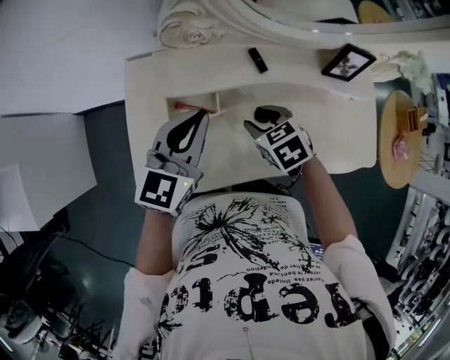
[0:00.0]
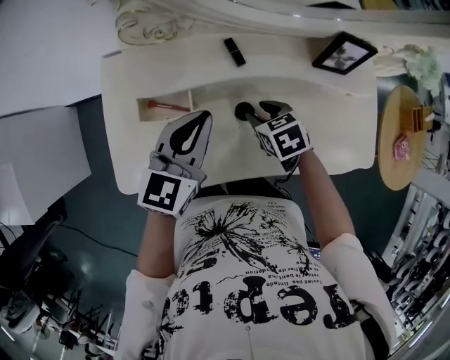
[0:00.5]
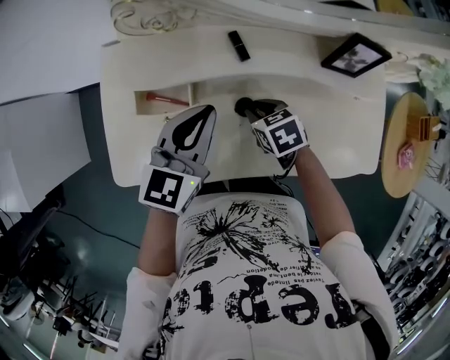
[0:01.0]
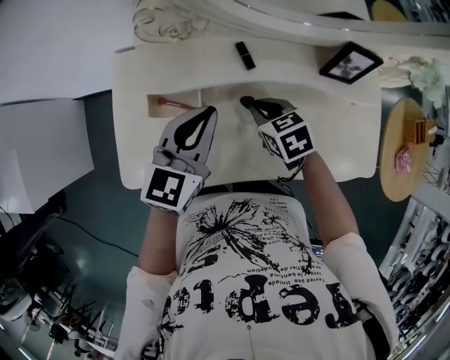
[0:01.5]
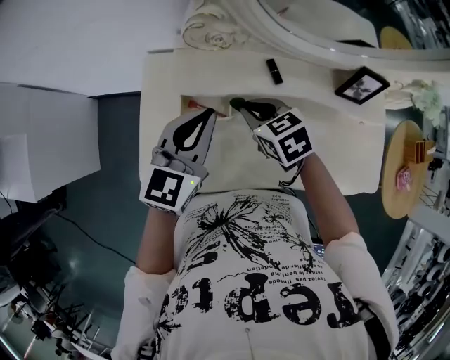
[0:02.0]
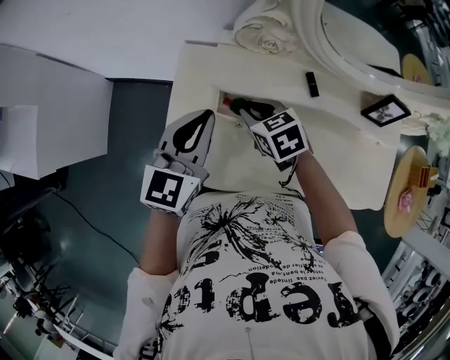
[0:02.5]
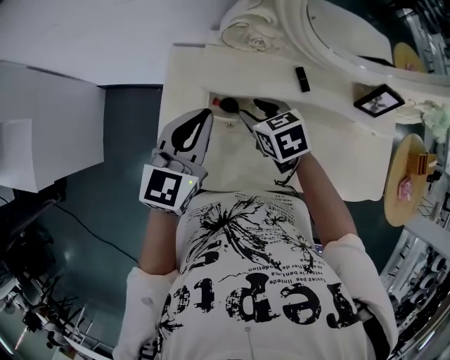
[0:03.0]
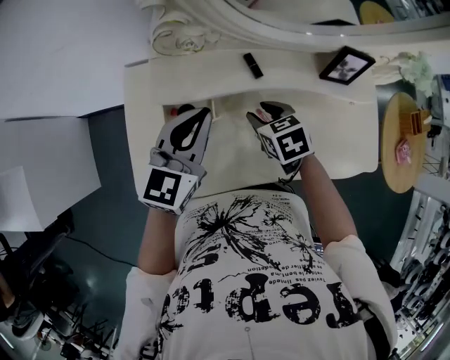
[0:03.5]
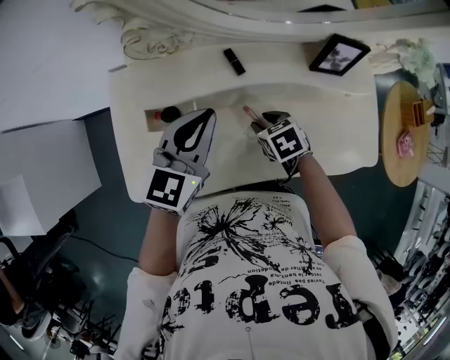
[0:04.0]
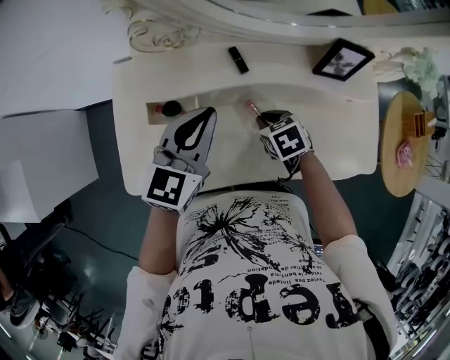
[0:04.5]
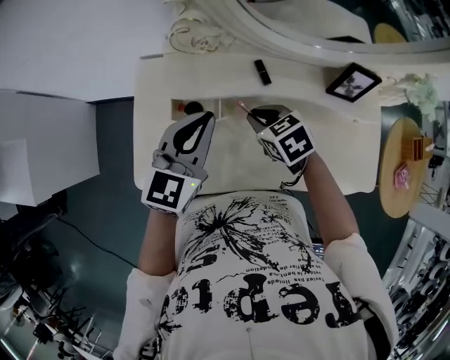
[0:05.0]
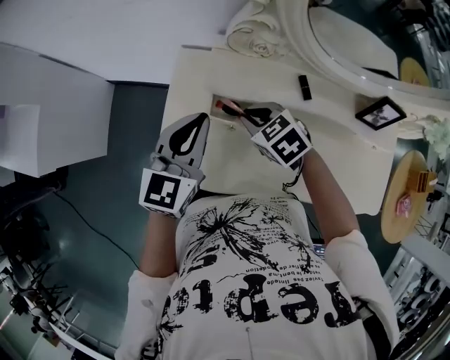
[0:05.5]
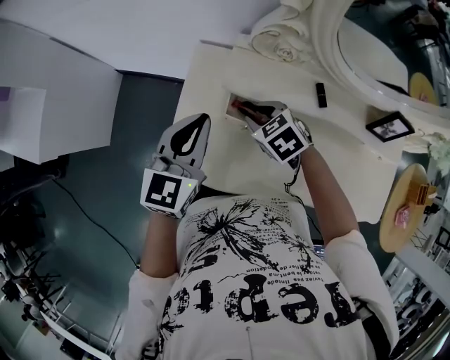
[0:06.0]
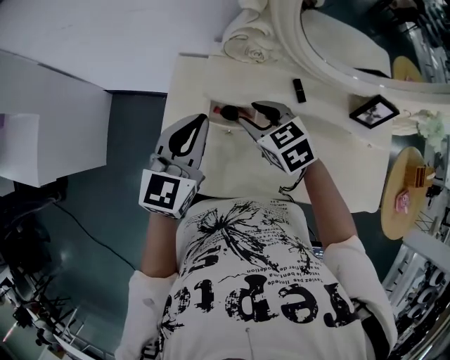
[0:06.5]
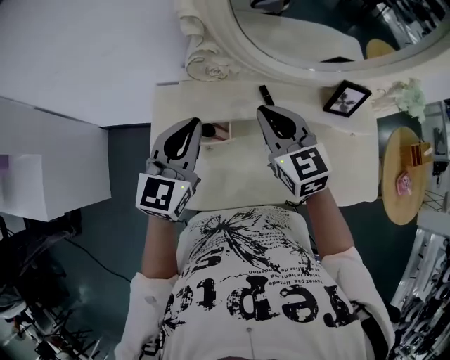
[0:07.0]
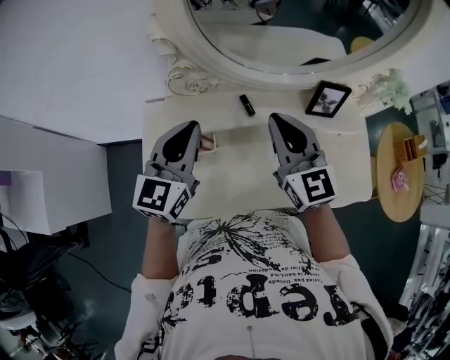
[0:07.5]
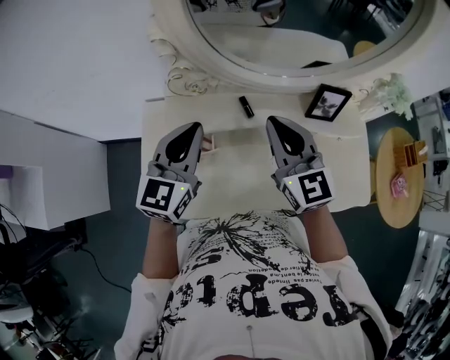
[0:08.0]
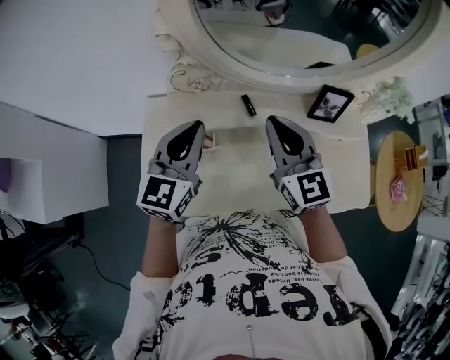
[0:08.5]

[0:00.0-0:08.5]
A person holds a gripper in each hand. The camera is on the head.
0:00.0 to 0:02.0: The left gripper reaches roughly 10 cm to the right, then returns, while the right gripper reaches roughly 10 cm to the right, then returns.
0:02.0 to 0:04.0: The right gripper is displaced to the right, downward and backward by about 20 cm, and swivels about 20 degrees, while the left gripper is displaced to the right by roughly 10 cm.
0:04.0 to 0:06.5: The left gripper travels to the left by roughly 20 cm, and turns by some 20 degrees; the right gripper heads to the left, upward and forward, covering about 25 cm, and rotates about 30 degrees.
0:06.5 to 0:08.5: The left gripper goes roughly 15 cm to the right and upward. Meanwhile the right gripper goes approximately 25 cm to the right and upward, and tips its fingers upward by roughly 40 degrees.

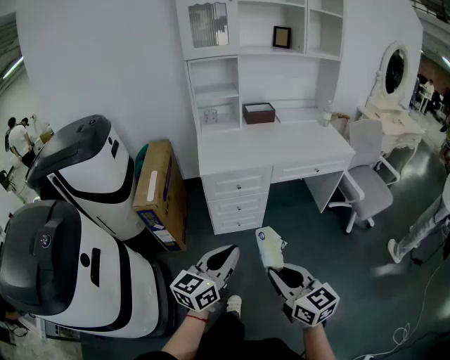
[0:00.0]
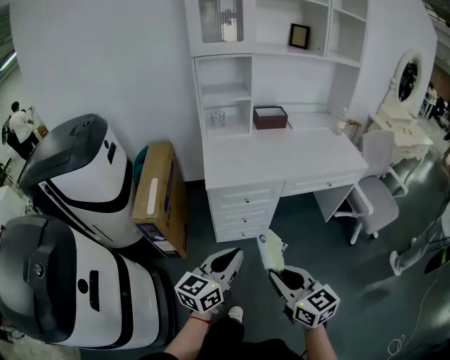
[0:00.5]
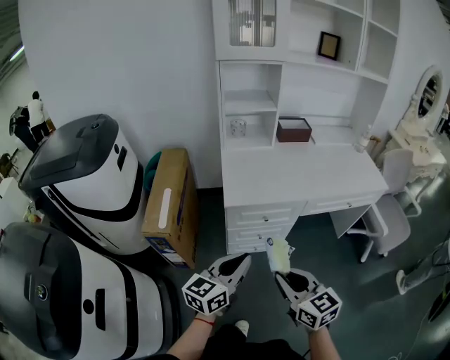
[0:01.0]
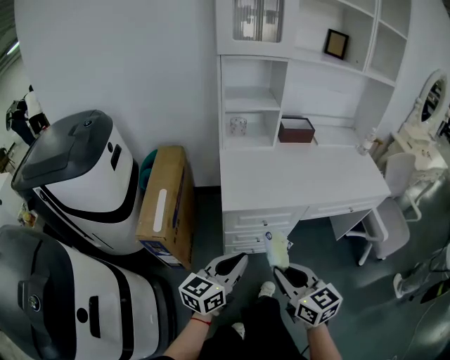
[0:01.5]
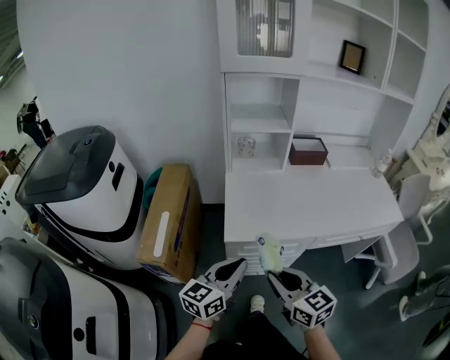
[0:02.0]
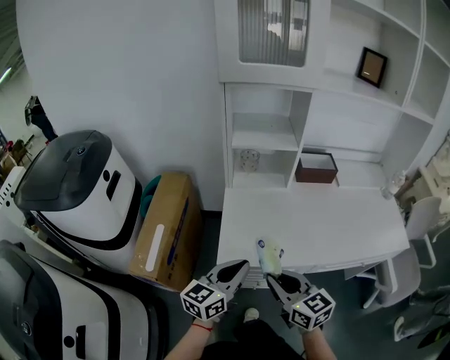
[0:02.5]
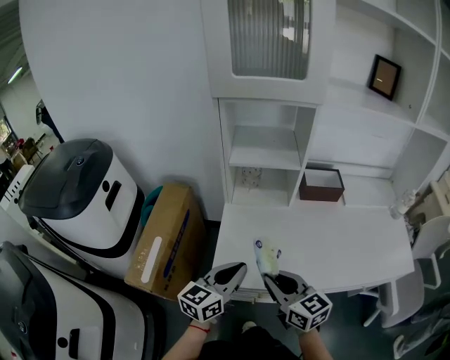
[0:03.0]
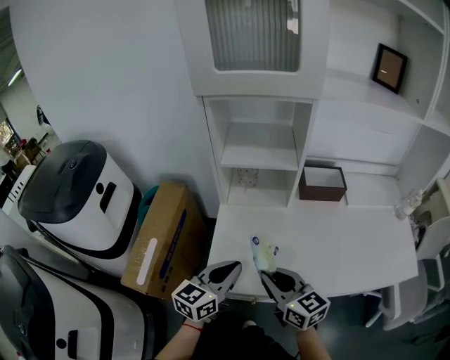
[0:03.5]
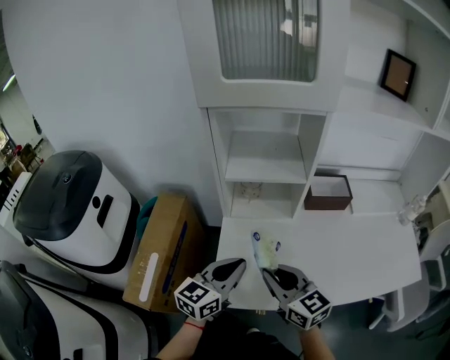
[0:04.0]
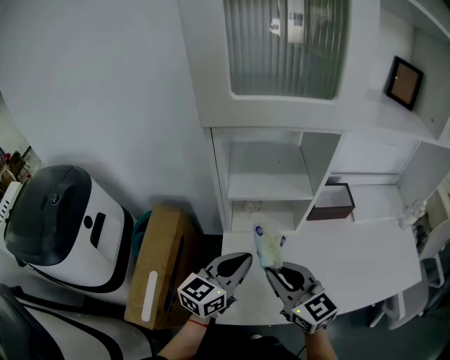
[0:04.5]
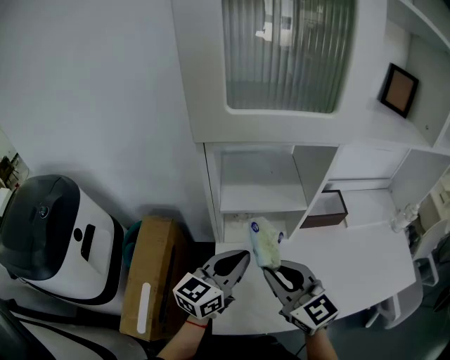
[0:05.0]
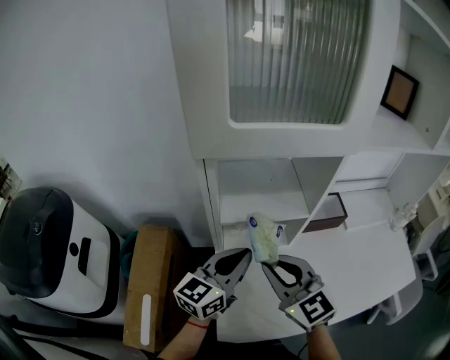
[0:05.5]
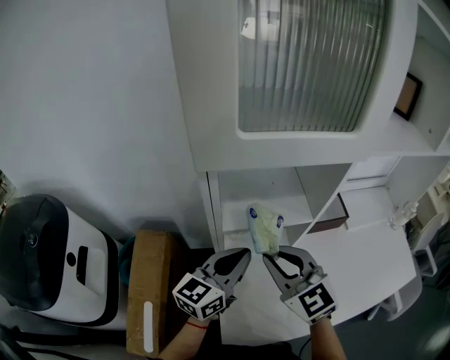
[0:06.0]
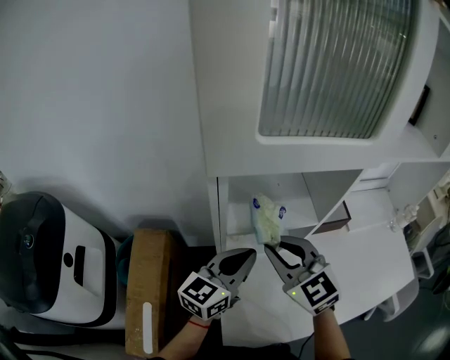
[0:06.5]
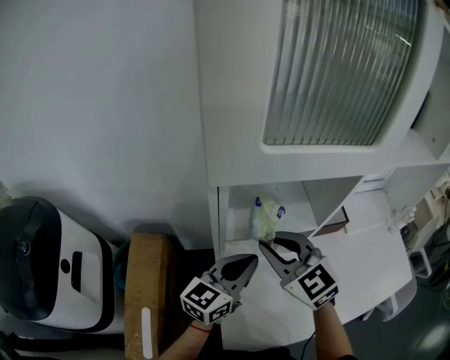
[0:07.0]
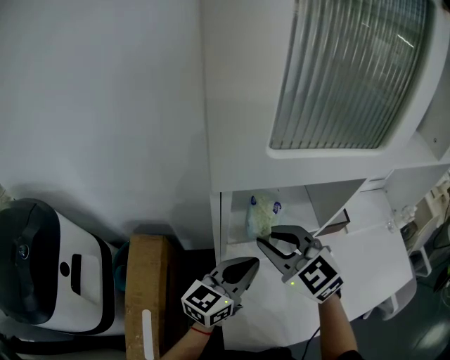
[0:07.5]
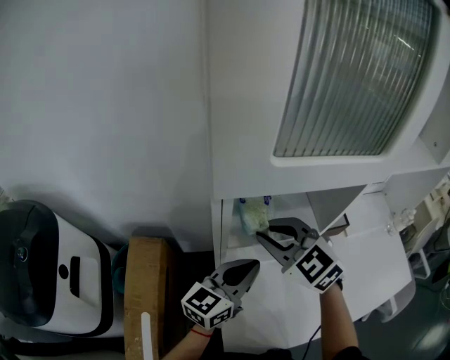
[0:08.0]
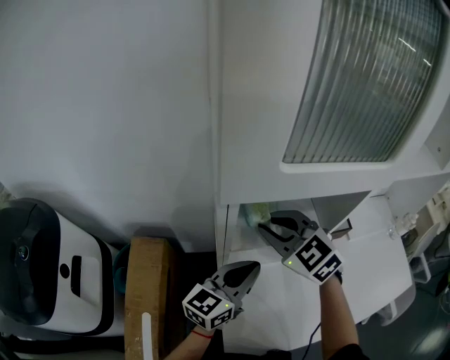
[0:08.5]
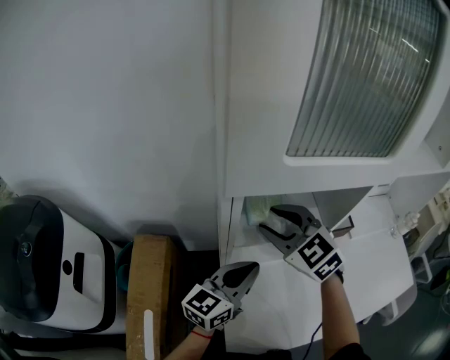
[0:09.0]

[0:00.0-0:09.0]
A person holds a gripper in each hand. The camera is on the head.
0:00.0 to 0:02.0: The two grippers go roughly 40 cm forward.
0:02.0 to 0:04.5: The grippers both shift forward by roughly 35 cm.
0:04.5 to 0:07.0: The right gripper is displaced forward by approximately 15 cm, and swivels some 20 degrees, while the left gripper goes roughly 10 cm forward.
0:07.0 to 0:09.0: The right gripper goes roughly 5 cm forward, and opens its fingers.

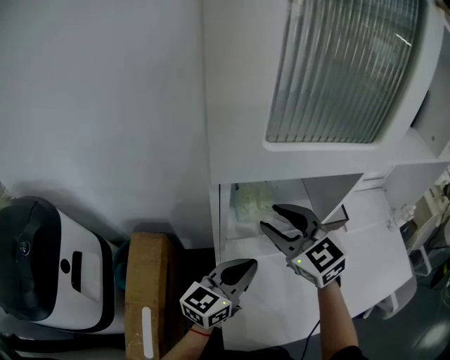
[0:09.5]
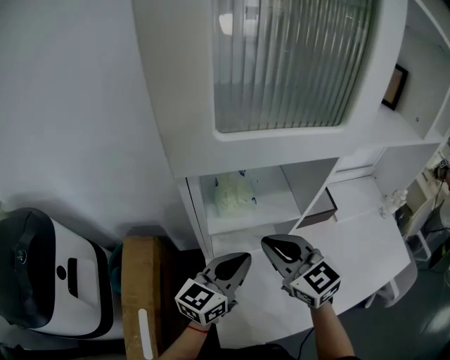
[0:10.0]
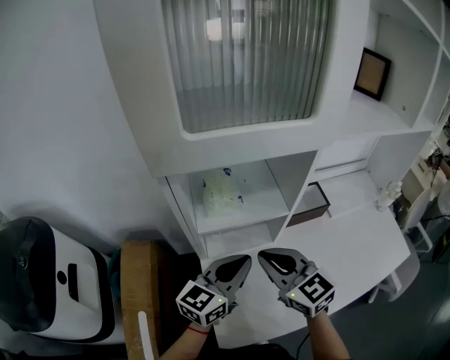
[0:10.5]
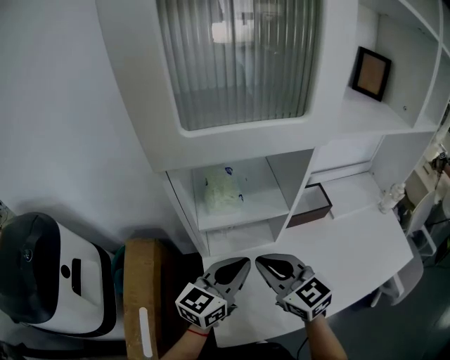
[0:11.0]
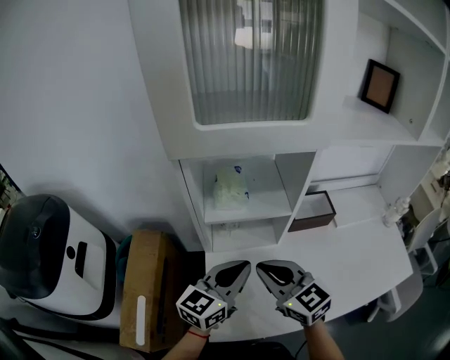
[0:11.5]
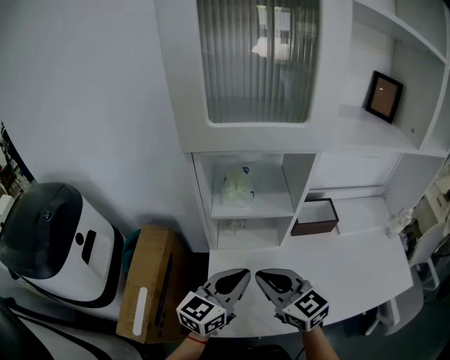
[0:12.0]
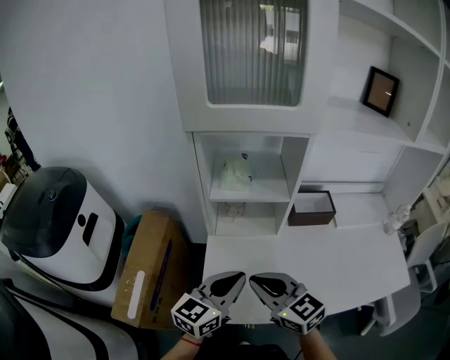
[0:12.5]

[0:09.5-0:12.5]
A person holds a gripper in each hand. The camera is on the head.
0:09.5 to 0:11.0: The right gripper is displaced backward, downward and to the right by about 15 cm, and closes; the left gripper moves to the right, roughly 5 cm.
0:11.0 to 0:12.5: The grippers both shift backward by some 15 cm.

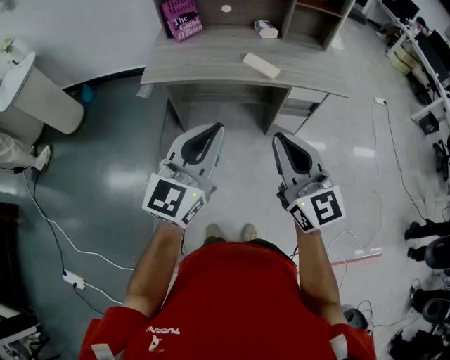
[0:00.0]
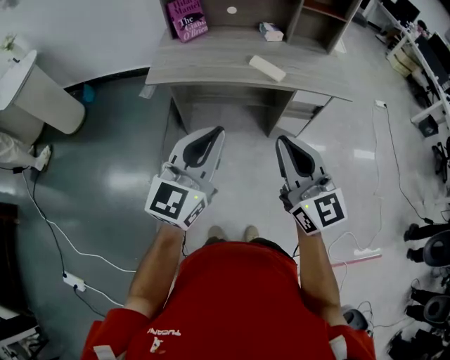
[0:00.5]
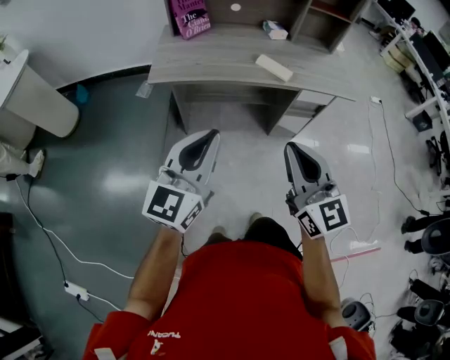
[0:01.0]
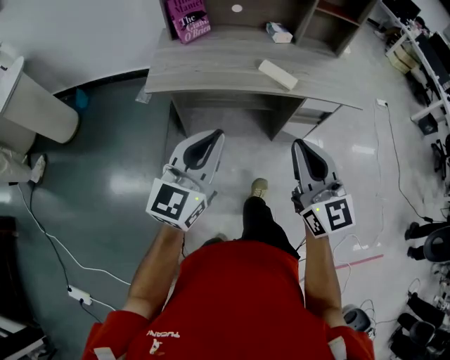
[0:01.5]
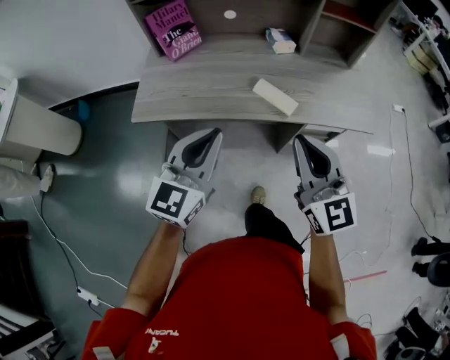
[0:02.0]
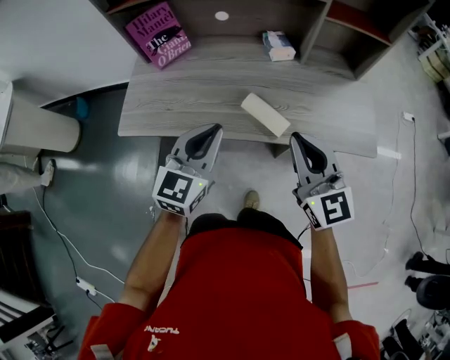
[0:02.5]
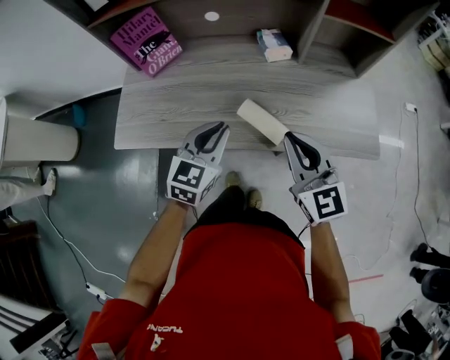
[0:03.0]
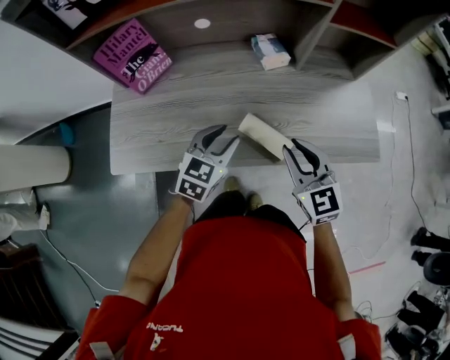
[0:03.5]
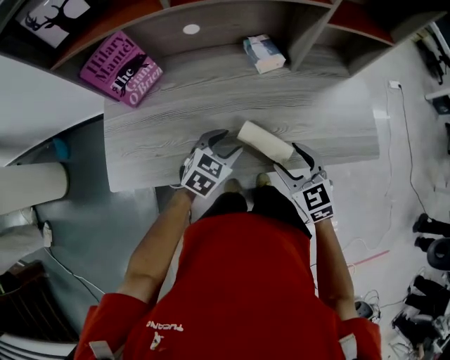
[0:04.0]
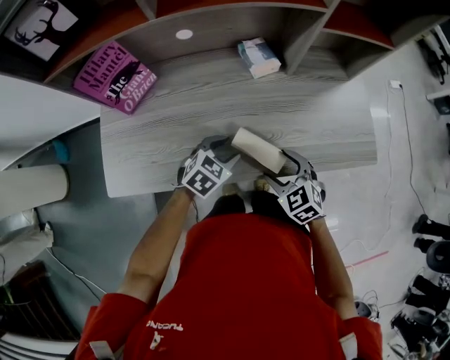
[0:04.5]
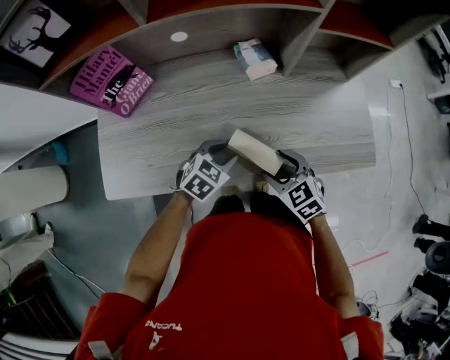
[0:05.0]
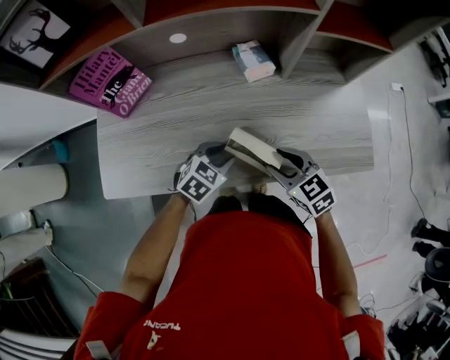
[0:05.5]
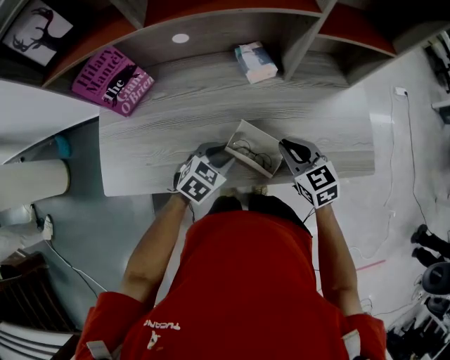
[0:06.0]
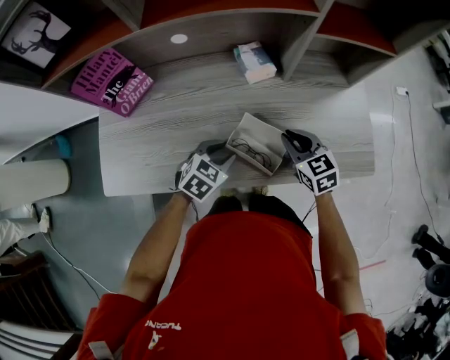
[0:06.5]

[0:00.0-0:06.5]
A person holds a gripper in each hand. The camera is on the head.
0:00.0 to 0:02.0: The grippers both shift forward by approximately 25 cm.
0:02.0 to 0:04.5: The two grippers go about 35 cm downward and forward. The left gripper tilts its fingers about 50 degrees downward, and opens its fingers. Meanwhile the right gripper points its fingers some 50 degrees further downward, and opens.
0:04.5 to 0:06.5: The right gripper moves forward and to the right, some 15 cm, and closes.
